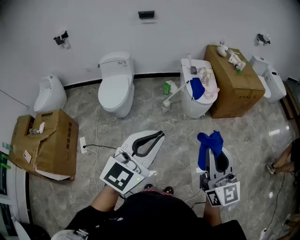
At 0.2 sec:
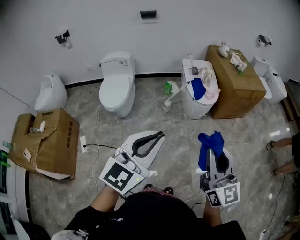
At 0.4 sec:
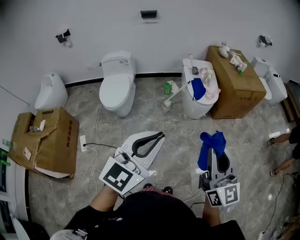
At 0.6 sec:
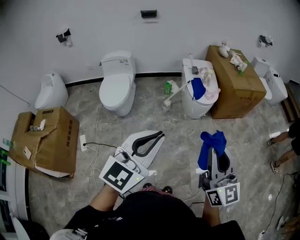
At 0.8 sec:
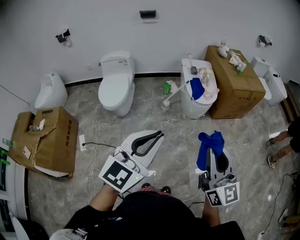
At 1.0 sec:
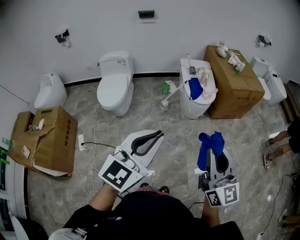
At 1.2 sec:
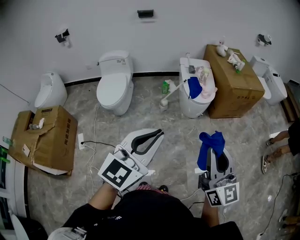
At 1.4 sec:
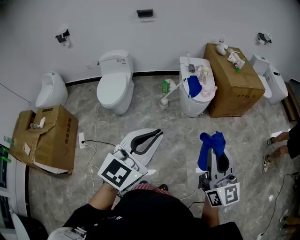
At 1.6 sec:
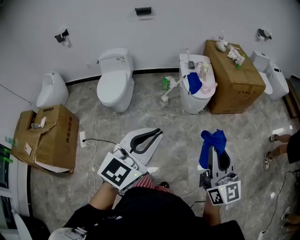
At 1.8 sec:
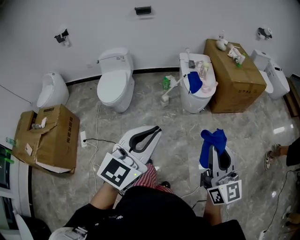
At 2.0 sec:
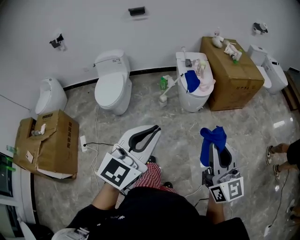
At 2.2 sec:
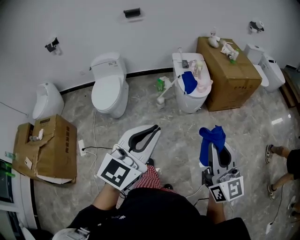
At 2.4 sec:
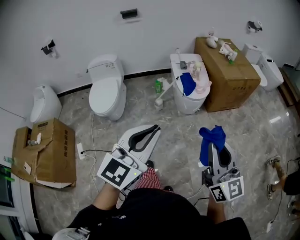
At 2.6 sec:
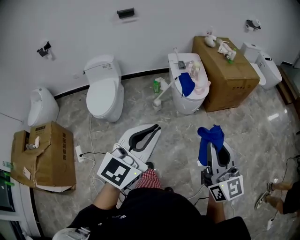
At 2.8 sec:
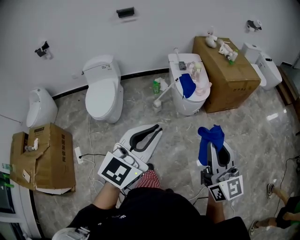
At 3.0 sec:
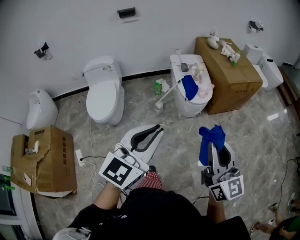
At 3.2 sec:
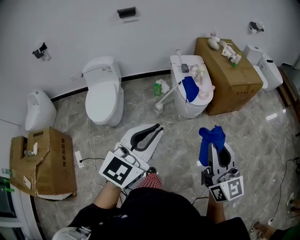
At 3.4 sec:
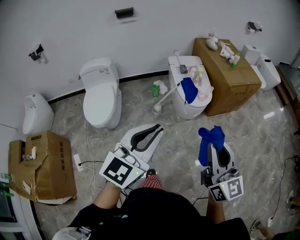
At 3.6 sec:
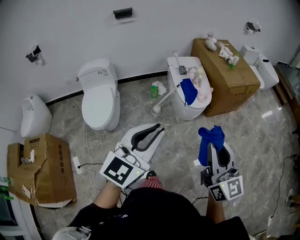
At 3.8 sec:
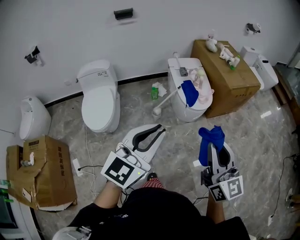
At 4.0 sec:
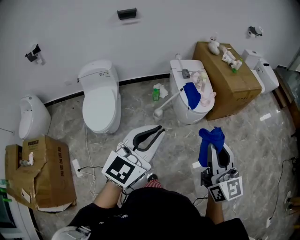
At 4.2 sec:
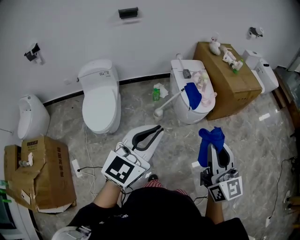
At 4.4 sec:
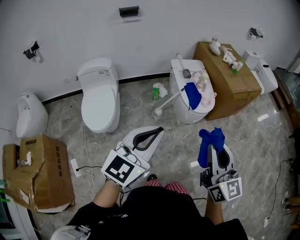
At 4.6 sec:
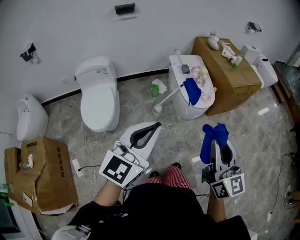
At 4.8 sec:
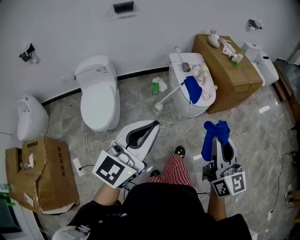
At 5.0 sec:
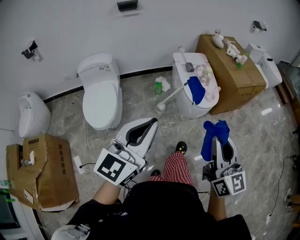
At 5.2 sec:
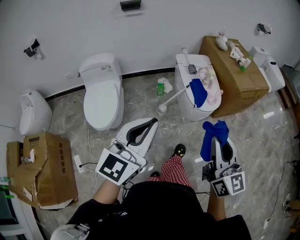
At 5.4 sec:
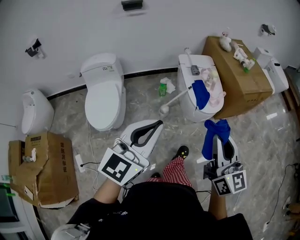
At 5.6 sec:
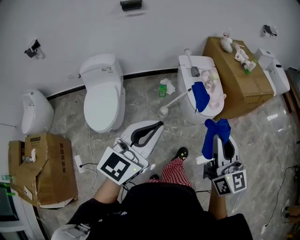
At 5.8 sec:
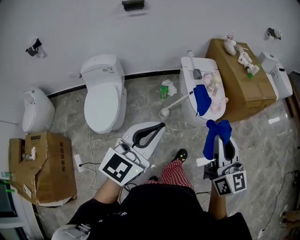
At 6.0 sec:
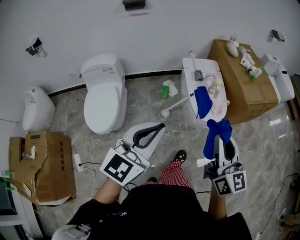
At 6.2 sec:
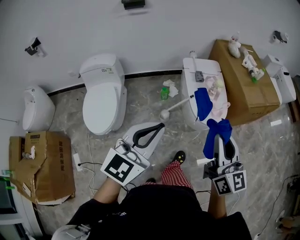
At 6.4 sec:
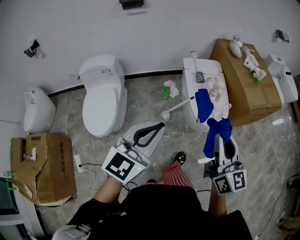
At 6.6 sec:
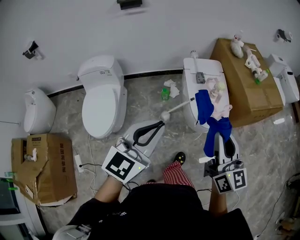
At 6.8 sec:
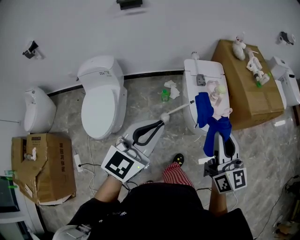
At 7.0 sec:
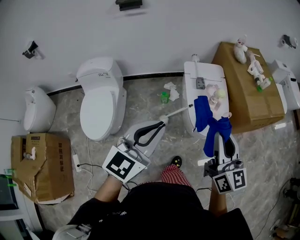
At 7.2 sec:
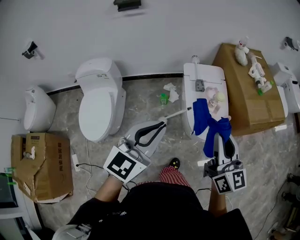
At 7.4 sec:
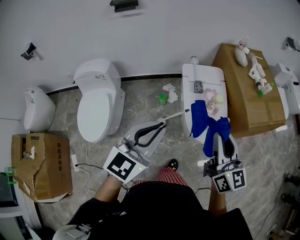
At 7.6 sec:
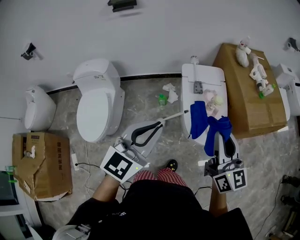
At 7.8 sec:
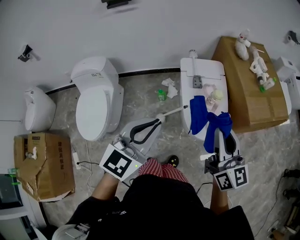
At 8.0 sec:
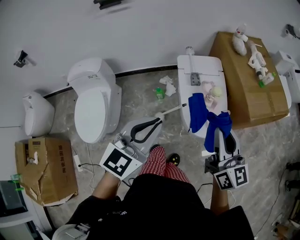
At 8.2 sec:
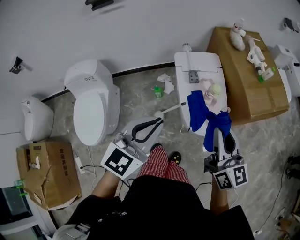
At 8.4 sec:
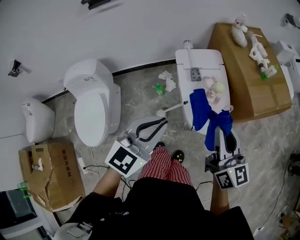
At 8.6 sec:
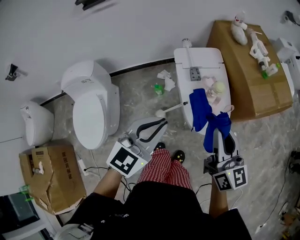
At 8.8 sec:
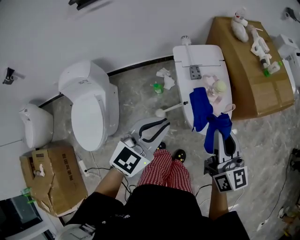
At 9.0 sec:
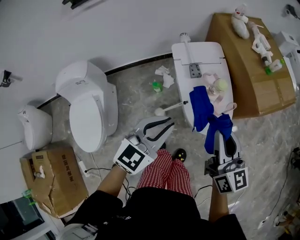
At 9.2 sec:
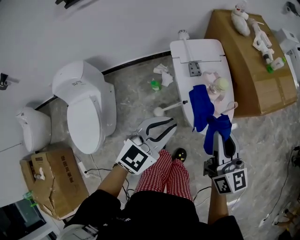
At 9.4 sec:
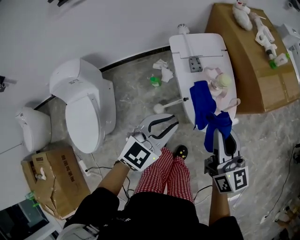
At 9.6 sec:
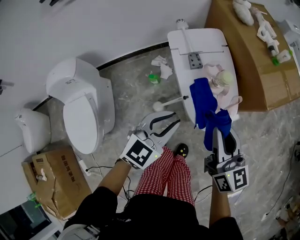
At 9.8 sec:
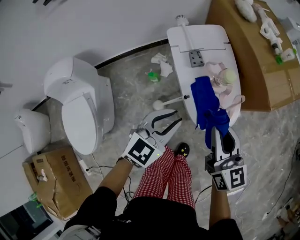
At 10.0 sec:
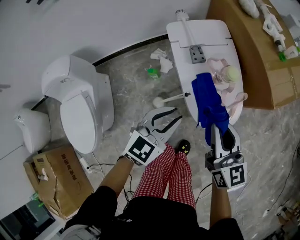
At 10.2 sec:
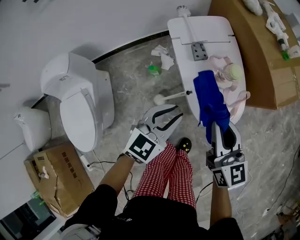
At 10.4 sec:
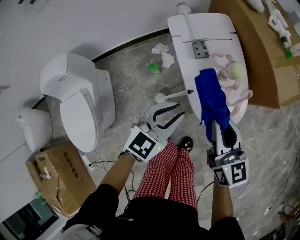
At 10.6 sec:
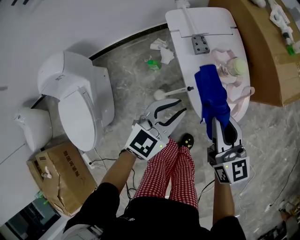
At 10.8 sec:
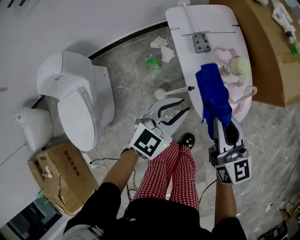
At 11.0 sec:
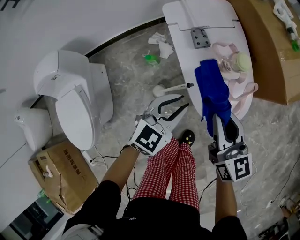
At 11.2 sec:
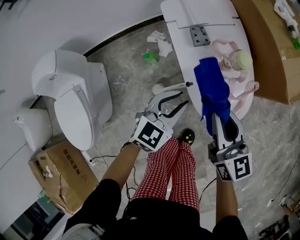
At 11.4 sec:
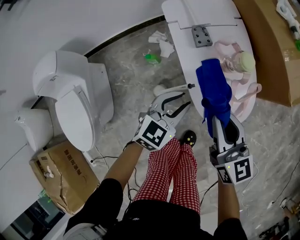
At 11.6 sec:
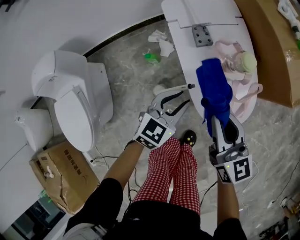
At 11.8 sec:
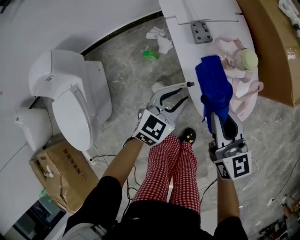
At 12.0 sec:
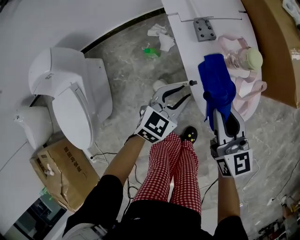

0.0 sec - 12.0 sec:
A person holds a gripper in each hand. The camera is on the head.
0.0 sec - 1.6 sec: Both grippers move to the right, about 10 cm.
1.6 sec - 3.0 sec: The grippers both shift forward and to the left by roughly 15 cm.
3.0 sec - 4.4 sec: Both grippers move to the left and forward, some 15 cm.
4.4 sec - 6.0 sec: Both grippers move forward, some 15 cm.
6.0 sec - 7.6 sec: Both grippers travel together forward, approximately 25 cm.
7.6 sec - 9.0 sec: The left gripper travels downward and forward by some 15 cm, while the right gripper goes approximately 10 cm downward and forward.
9.0 sec - 10.4 sec: The right gripper is displaced downward by roughly 15 cm. Meanwhile the left gripper moves downward and forward, roughly 20 cm.
10.4 sec - 12.0 sec: Both grippers move downward, roughly 15 cm.

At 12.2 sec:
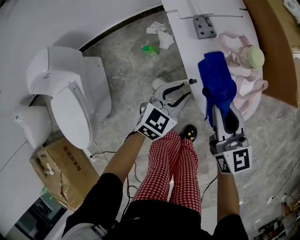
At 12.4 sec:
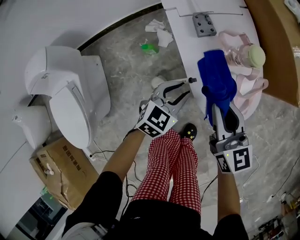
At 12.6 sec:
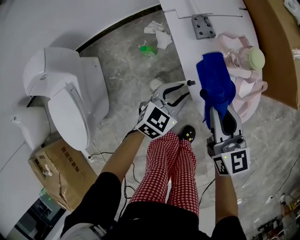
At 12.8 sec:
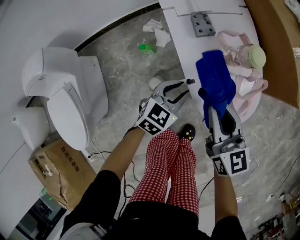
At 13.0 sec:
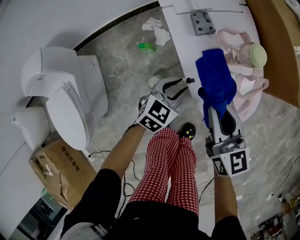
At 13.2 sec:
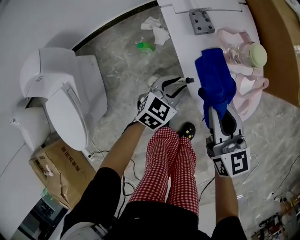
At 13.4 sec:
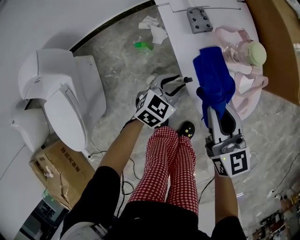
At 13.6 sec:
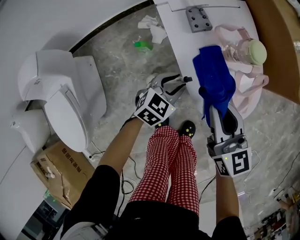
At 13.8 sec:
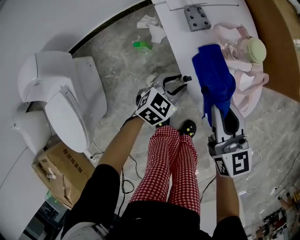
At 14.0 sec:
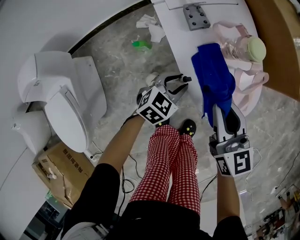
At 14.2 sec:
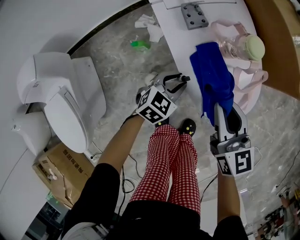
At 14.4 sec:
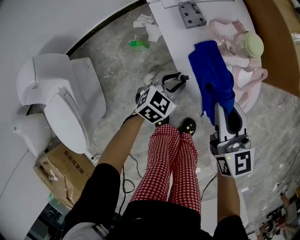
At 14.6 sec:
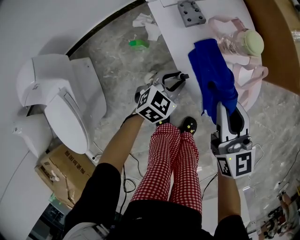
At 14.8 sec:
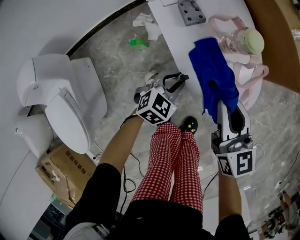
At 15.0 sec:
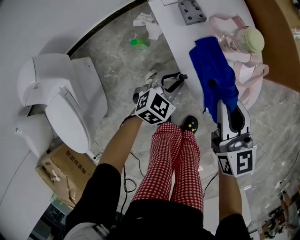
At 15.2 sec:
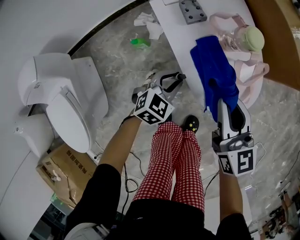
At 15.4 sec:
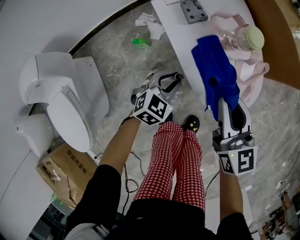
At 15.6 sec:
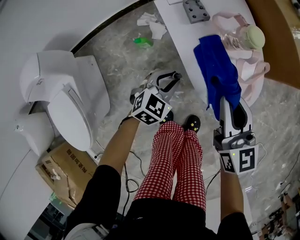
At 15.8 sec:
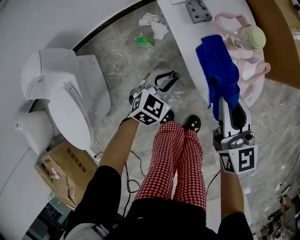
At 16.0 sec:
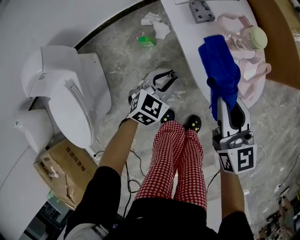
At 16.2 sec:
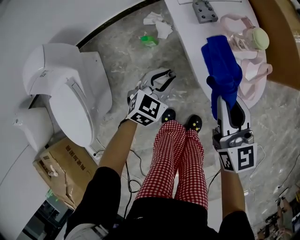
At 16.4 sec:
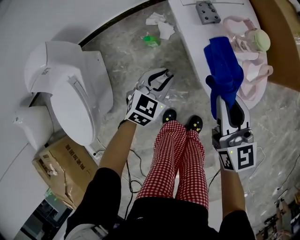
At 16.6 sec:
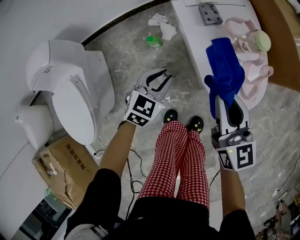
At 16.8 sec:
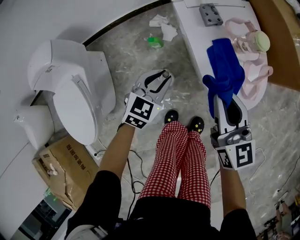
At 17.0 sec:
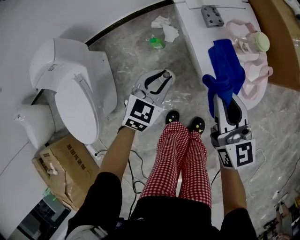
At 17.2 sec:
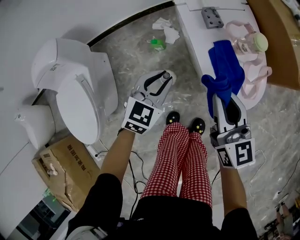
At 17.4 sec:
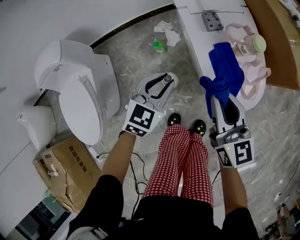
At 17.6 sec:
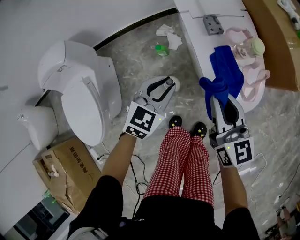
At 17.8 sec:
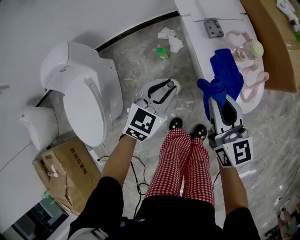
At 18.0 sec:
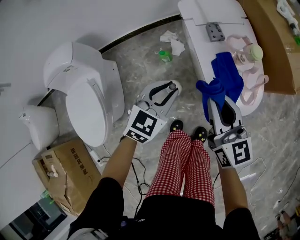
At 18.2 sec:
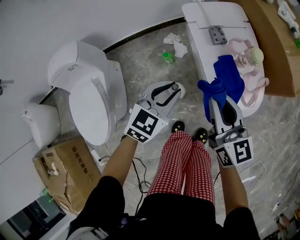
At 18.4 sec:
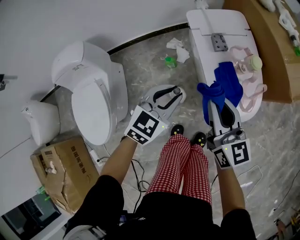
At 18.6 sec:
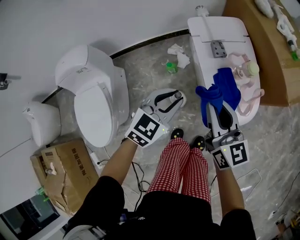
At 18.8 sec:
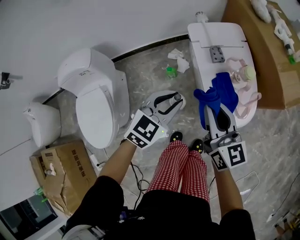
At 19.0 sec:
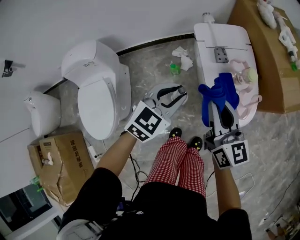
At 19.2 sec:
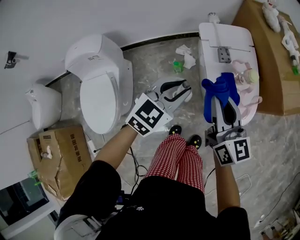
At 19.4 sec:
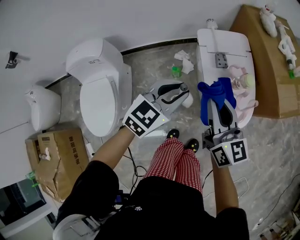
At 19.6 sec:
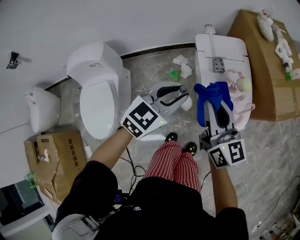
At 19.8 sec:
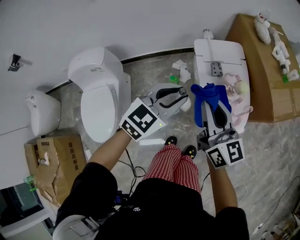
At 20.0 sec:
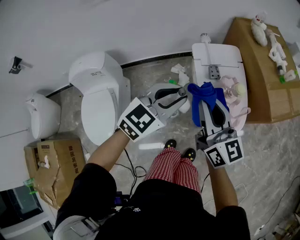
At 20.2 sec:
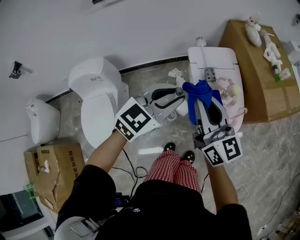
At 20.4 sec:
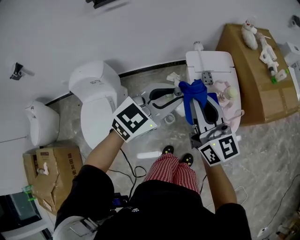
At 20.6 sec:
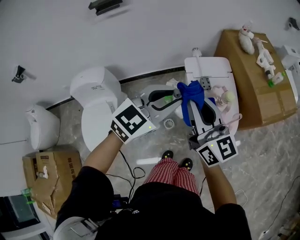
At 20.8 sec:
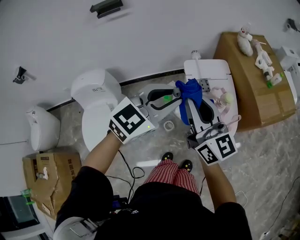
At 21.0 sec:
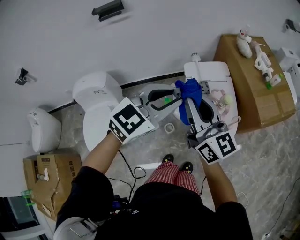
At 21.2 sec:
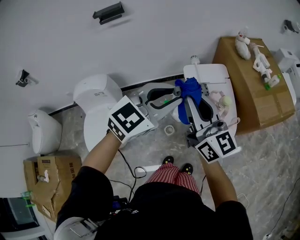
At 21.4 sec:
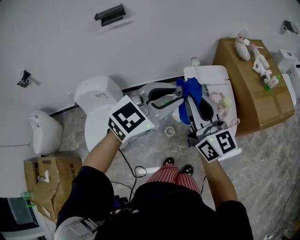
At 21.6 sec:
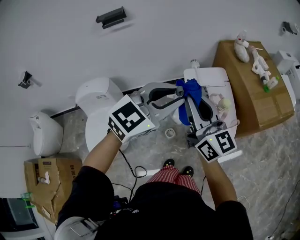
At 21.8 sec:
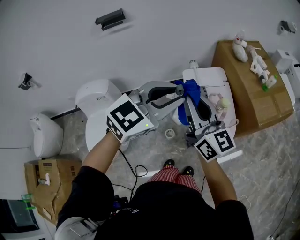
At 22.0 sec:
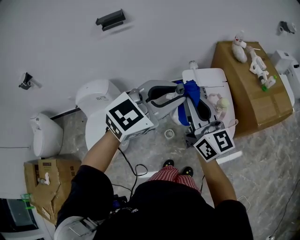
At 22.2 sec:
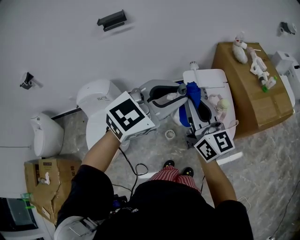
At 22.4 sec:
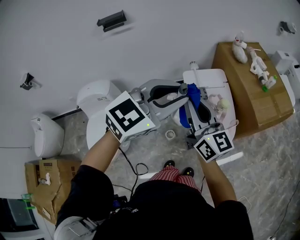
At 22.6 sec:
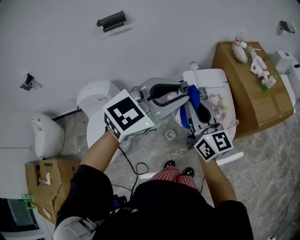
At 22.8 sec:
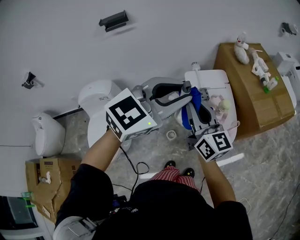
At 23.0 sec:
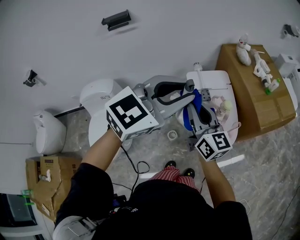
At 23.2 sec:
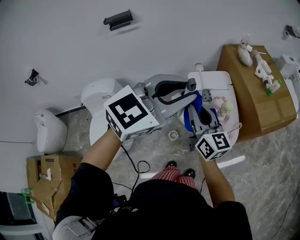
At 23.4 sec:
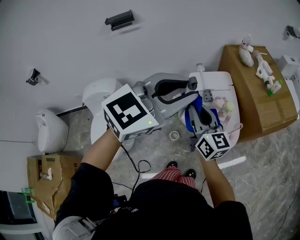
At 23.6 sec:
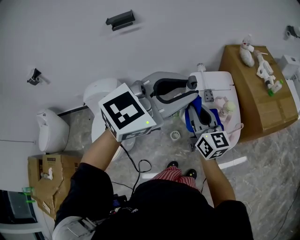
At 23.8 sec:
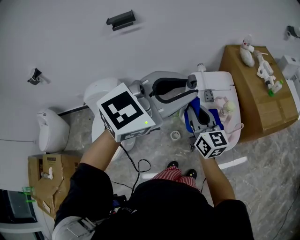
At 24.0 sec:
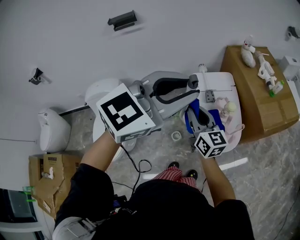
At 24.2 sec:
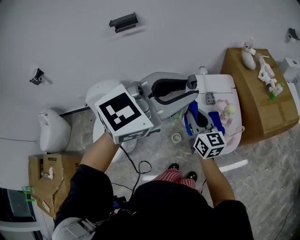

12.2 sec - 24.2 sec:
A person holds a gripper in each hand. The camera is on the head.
12.2 sec - 13.8 sec: The left gripper travels downward by some 10 cm.
13.8 sec - 15.2 sec: The grippers move only a little.
15.2 sec - 16.6 sec: The left gripper is displaced to the left and upward by roughly 10 cm. The right gripper is displaced to the left by some 5 cm.
16.6 sec - 18.2 sec: The left gripper moves upward, approximately 15 cm. Meanwhile the right gripper is displaced upward and to the left by roughly 10 cm.
18.2 sec - 19.8 sec: The grippers both shift upward by approximately 20 cm.
19.8 sec - 21.2 sec: Both grippers travel together upward, about 15 cm.
21.2 sec - 22.6 sec: The left gripper travels upward by approximately 5 cm.
22.6 sec - 24.2 sec: The left gripper is displaced upward by about 5 cm. The right gripper travels downward by roughly 10 cm.
